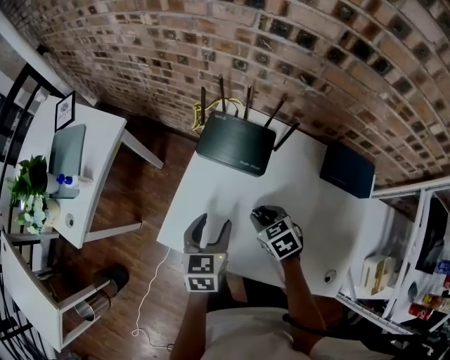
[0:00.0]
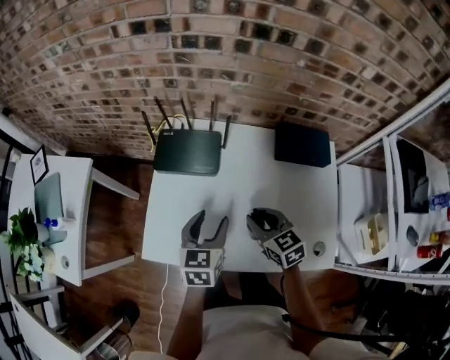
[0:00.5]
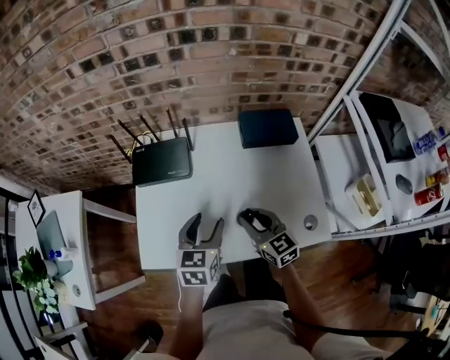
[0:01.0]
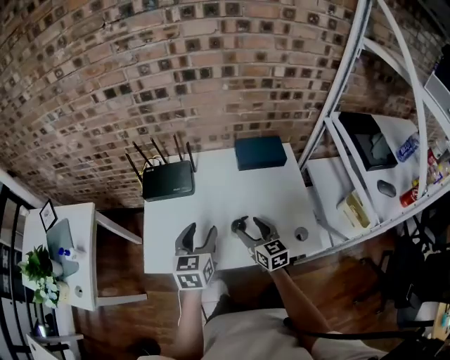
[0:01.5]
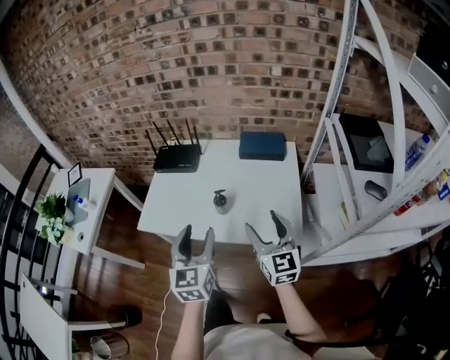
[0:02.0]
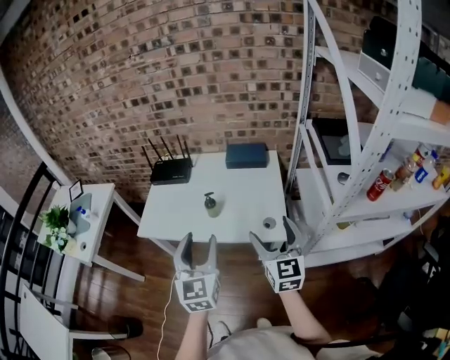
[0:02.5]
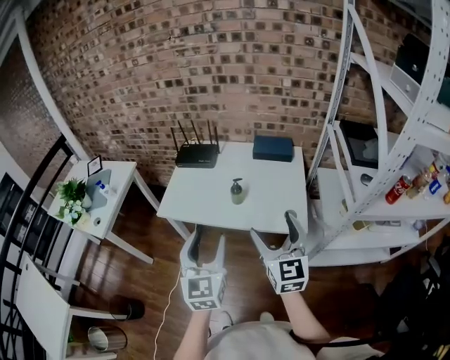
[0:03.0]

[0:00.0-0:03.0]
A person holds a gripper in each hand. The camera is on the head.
0:00.0 to 0:01.5: The right gripper moves roughly 20 cm, tilts its fingers some 40 degrees upward, and opens; the left gripper shifts by about 20 cm, and turns by some 30 degrees.
0:01.5 to 0:03.0: The two grippers go approximately 35 cm backward and upward. The left gripper rotates roughly 30 degrees; the right gripper turns by approximately 20 degrees.

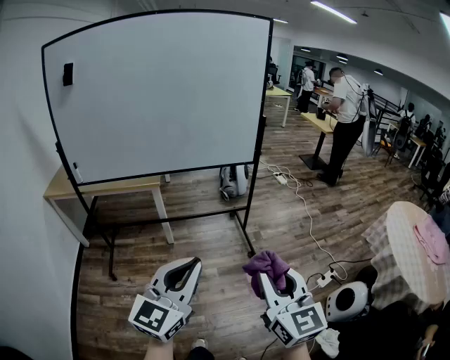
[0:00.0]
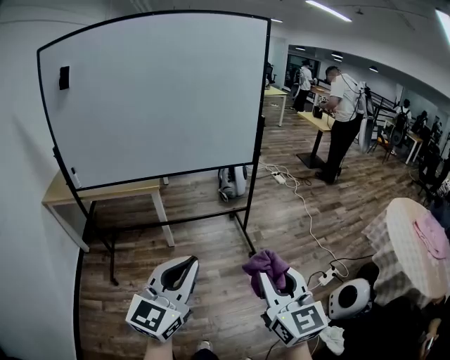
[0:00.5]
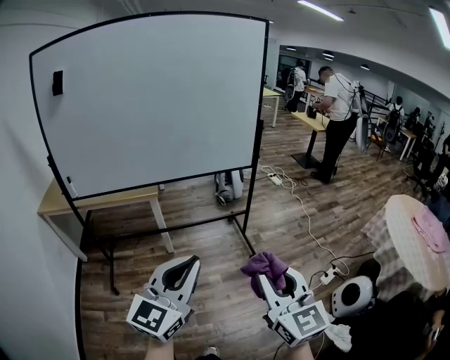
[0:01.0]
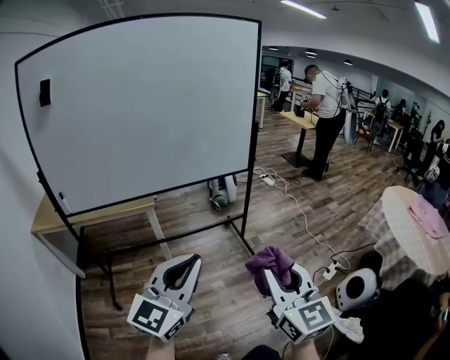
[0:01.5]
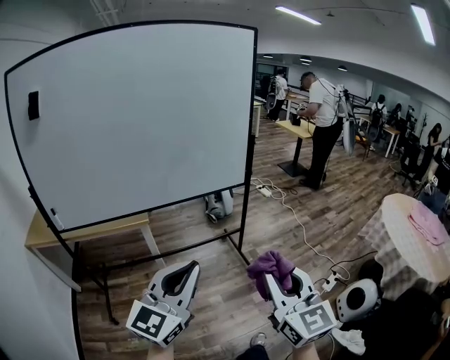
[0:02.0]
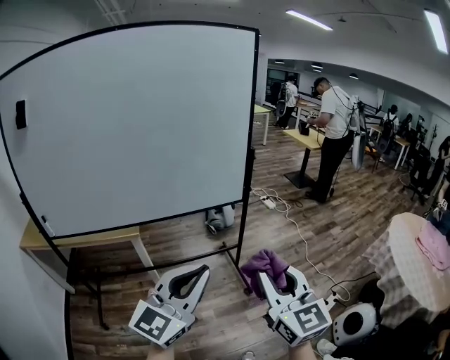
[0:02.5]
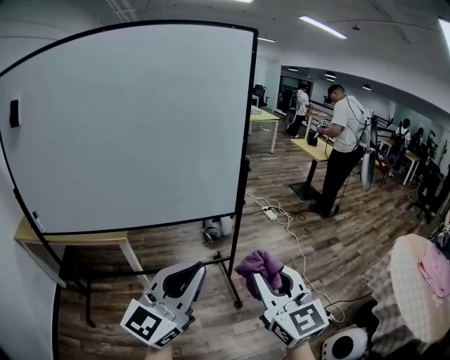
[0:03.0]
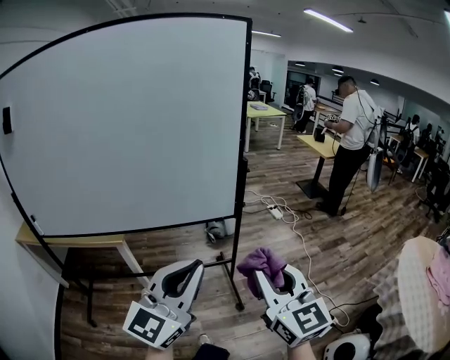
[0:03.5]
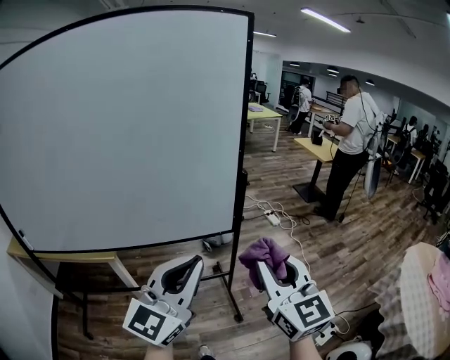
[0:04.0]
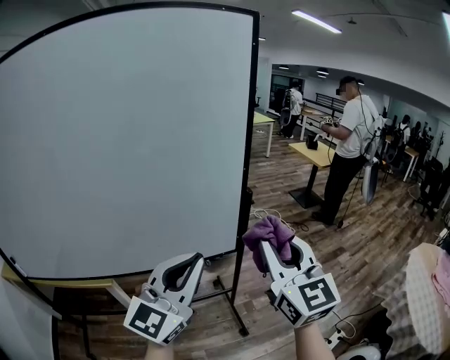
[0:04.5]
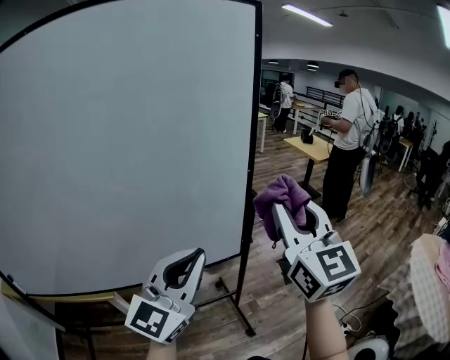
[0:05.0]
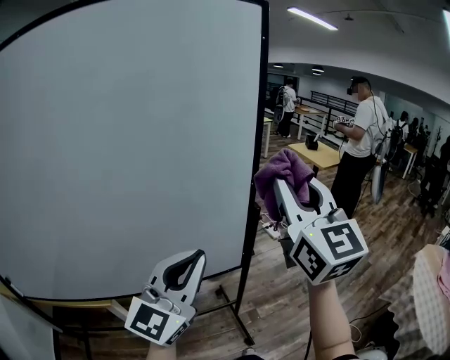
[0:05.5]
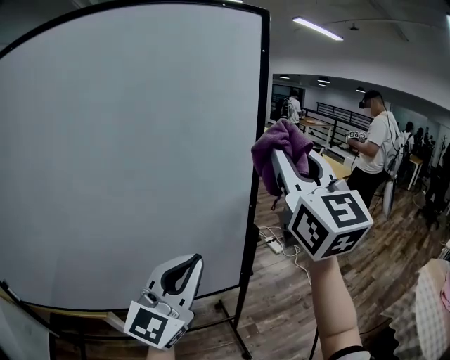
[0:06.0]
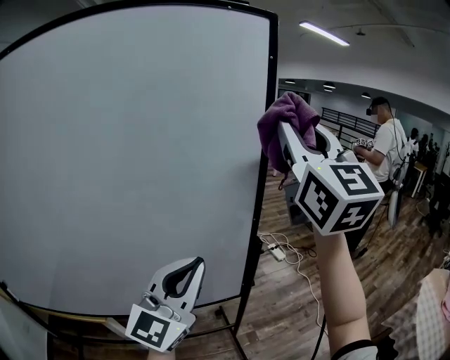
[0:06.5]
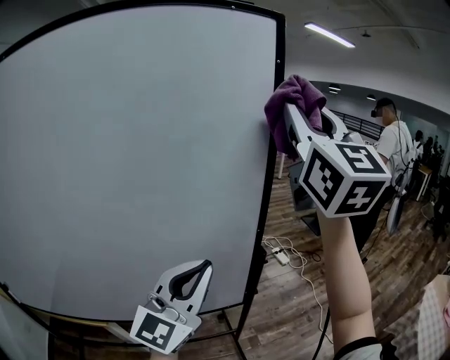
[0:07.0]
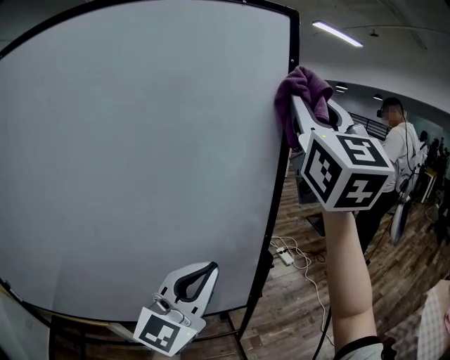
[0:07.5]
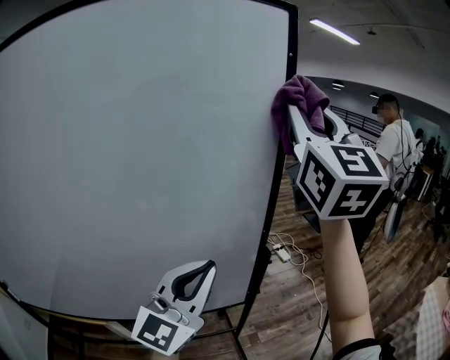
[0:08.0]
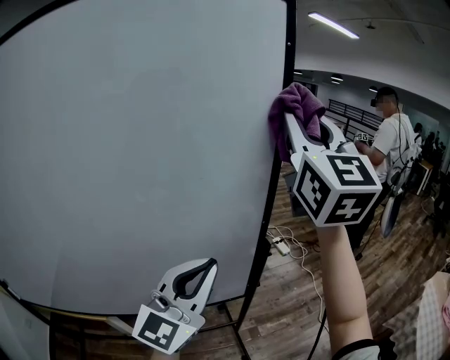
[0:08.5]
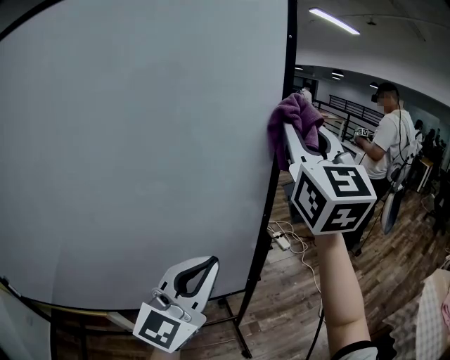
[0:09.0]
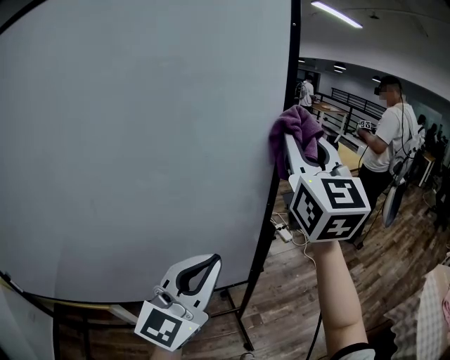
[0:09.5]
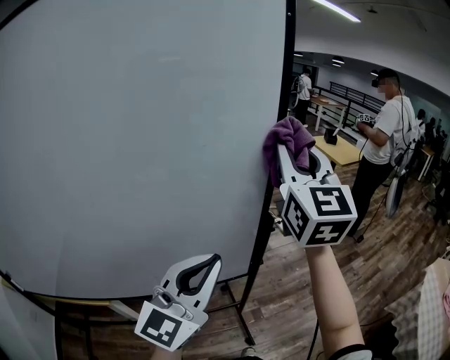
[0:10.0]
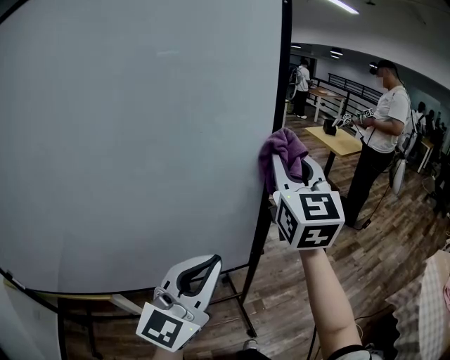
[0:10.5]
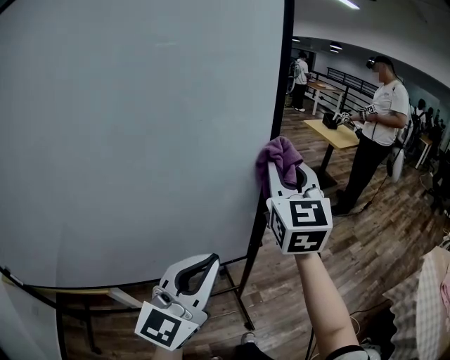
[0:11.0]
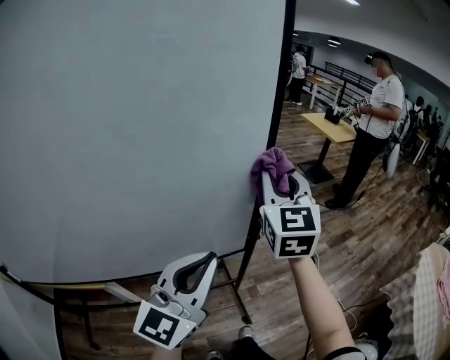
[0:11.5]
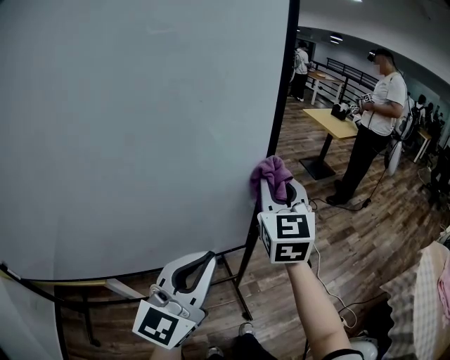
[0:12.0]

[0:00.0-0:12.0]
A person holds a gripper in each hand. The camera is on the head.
0:00.0 to 0:02.0: Both grippers travel together forward and to the left, roughly 15 cm.
0:02.0 to 0:04.0: The right gripper goes about 35 cm forward. The left gripper goes about 35 cm forward and to the right.
0:04.0 to 0:06.0: The right gripper is displaced forward and upward by approximately 35 cm, and turns by some 20 degrees. The left gripper moves forward, some 20 cm.
0:06.0 to 0:08.0: The left gripper heads forward, covering approximately 5 cm. The right gripper heads upward and forward, covering some 15 cm.
0:08.0 to 0:10.0: The right gripper is displaced downward by about 15 cm, while the left gripper shifts by about 5 cm.
0:10.0 to 0:12.0: The left gripper changes place by roughly 5 cm. The right gripper is displaced downward by about 15 cm.

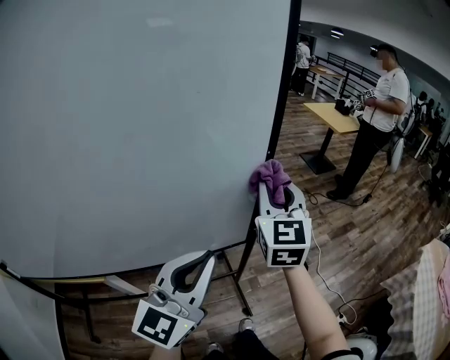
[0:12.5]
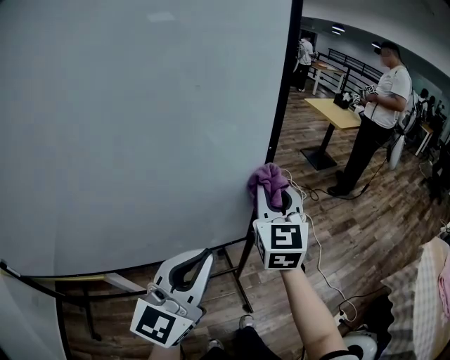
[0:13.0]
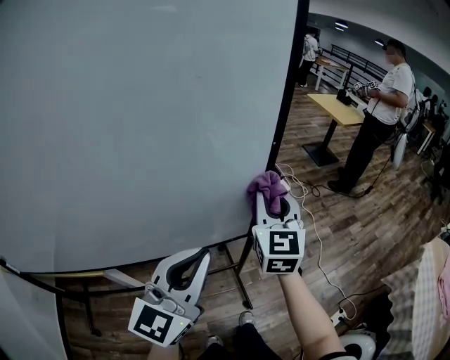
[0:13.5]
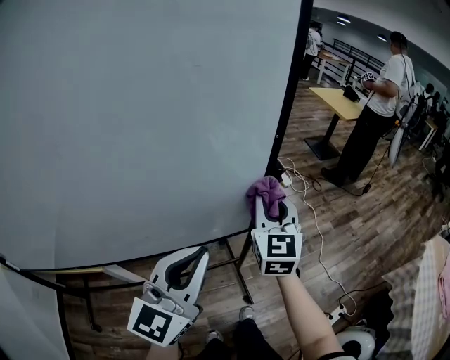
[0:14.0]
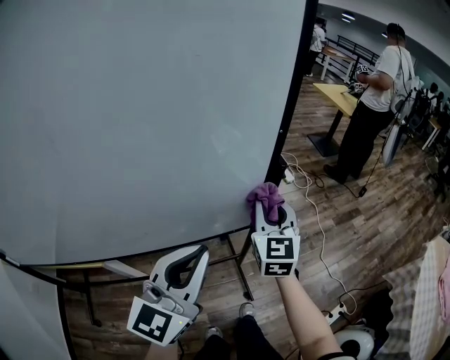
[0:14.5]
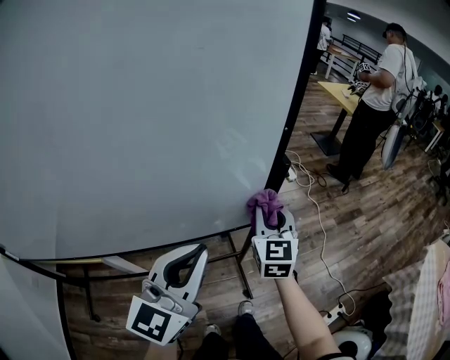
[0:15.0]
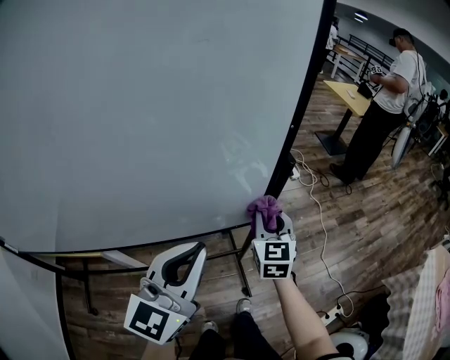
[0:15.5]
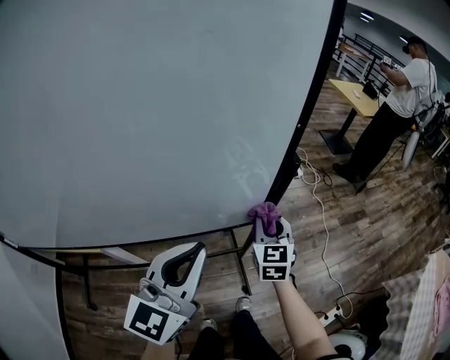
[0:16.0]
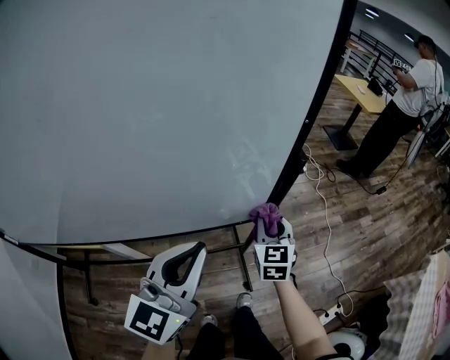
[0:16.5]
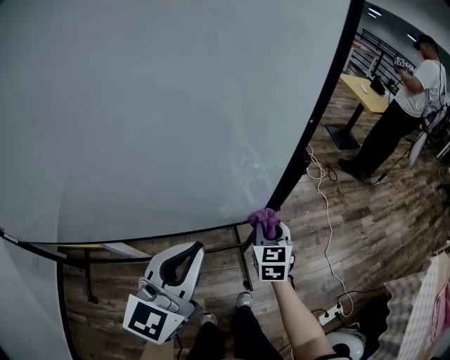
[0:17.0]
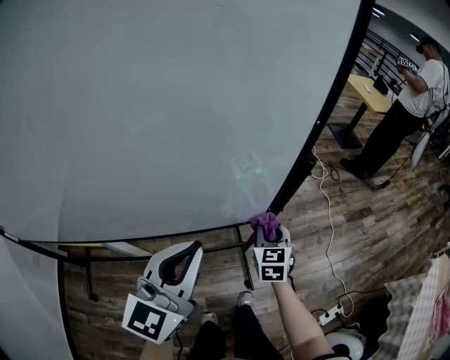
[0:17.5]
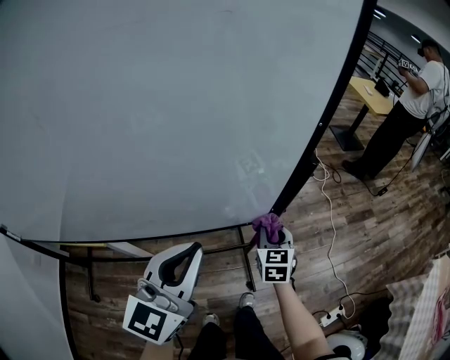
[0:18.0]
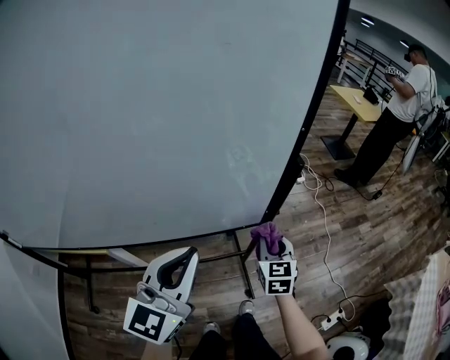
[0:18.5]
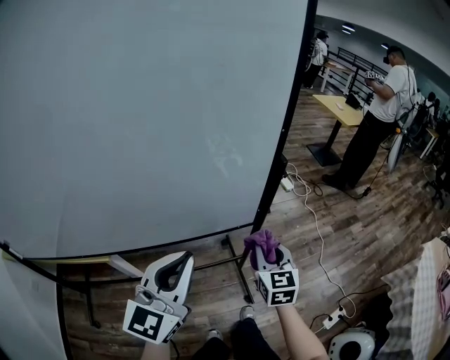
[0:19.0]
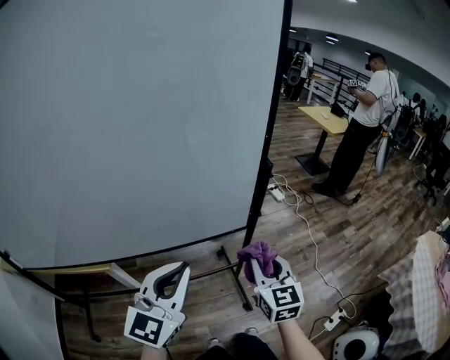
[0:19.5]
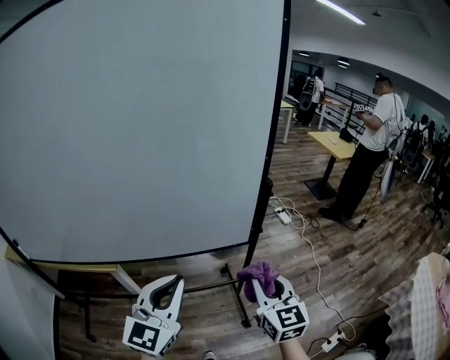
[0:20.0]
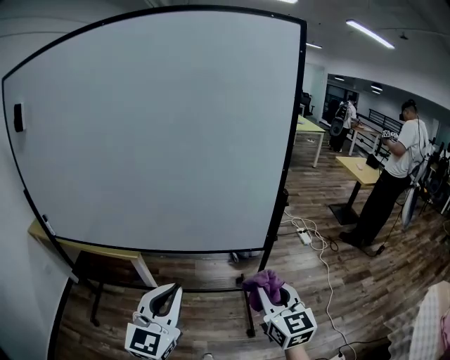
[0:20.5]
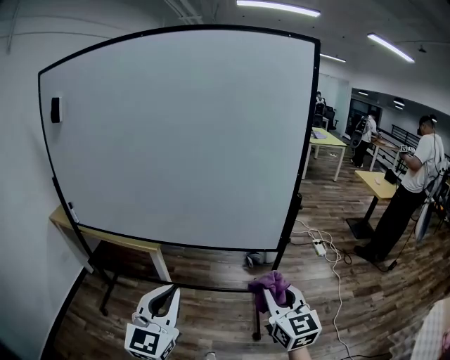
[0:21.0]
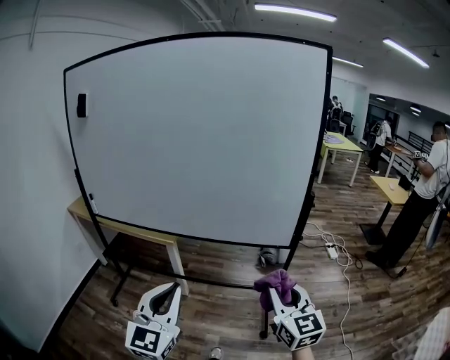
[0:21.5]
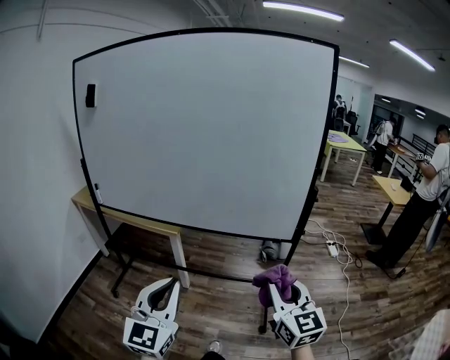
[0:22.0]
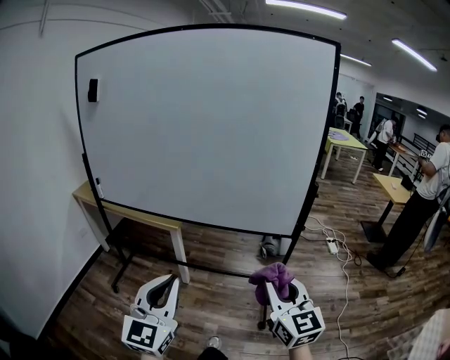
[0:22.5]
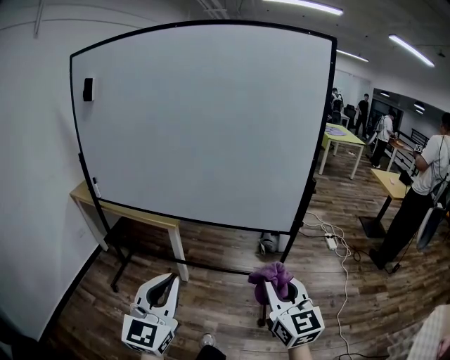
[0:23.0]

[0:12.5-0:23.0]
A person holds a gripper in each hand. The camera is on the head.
0:12.5 to 0:14.5: The right gripper goes some 15 cm downward.
0:14.5 to 0:16.5: The right gripper moves downward, some 15 cm.
0:16.5 to 0:19.0: The left gripper moves backward, about 5 cm, while the right gripper goes about 10 cm backward.
0:19.0 to 0:21.0: The right gripper ends up some 25 cm from where it was, and swivels roughly 30 degrees. Meanwhile the left gripper changes place by about 25 cm, and turns by about 30 degrees.
0:21.0 to 0:23.0: The grippers both shift backward by approximately 10 cm.

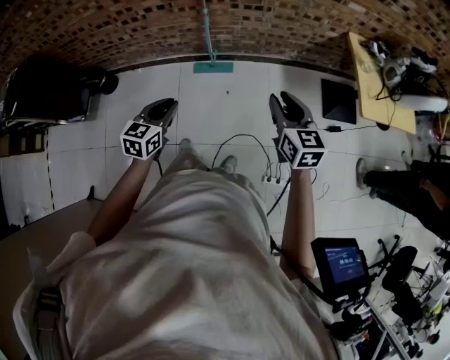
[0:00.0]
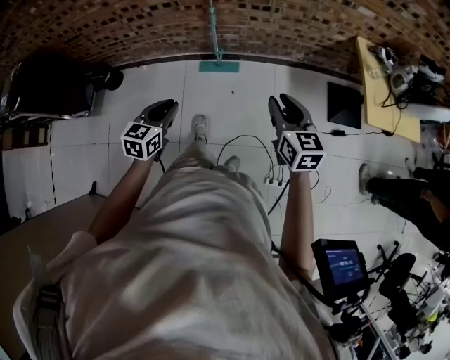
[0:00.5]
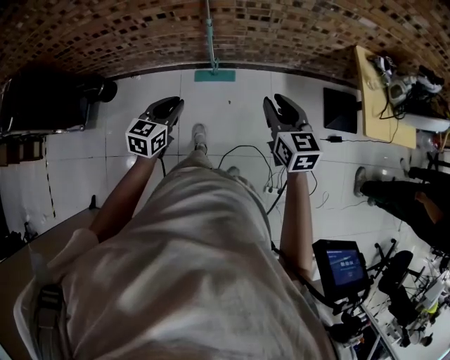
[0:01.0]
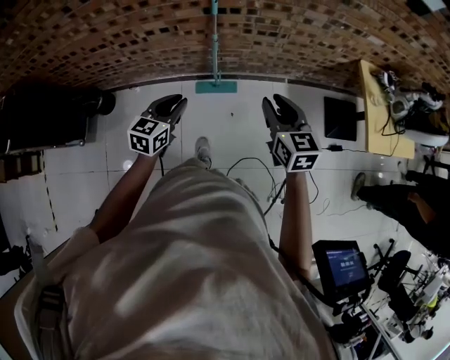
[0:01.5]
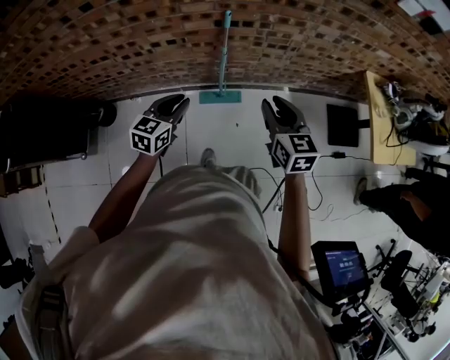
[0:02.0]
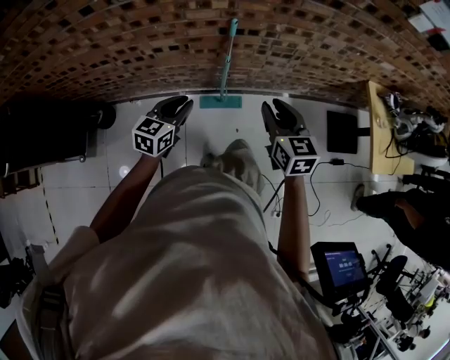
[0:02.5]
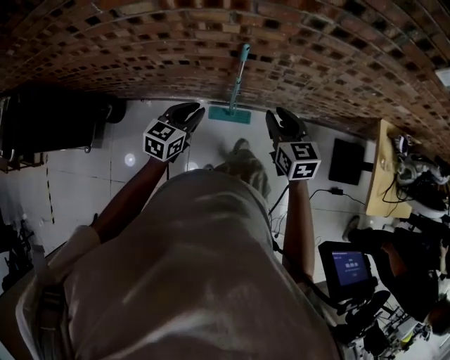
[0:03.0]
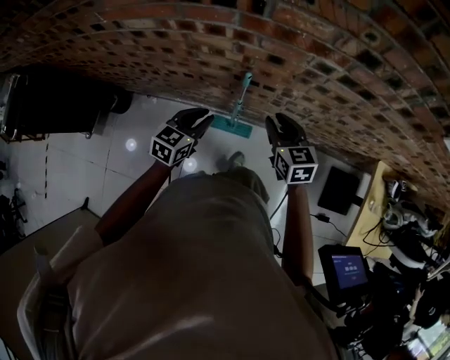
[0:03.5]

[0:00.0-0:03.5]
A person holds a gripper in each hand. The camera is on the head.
0:00.0 to 0:02.0: The grippers both shift forward and to the left by some 35 cm.
0:02.0 to 0:03.5: The two grippers go roughly 25 cm forward. The right gripper turns by roughly 20 degrees.
